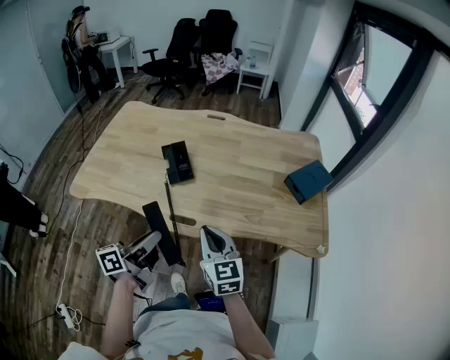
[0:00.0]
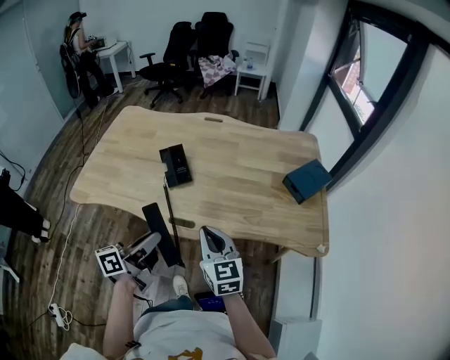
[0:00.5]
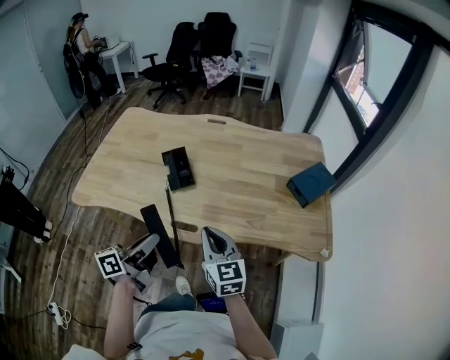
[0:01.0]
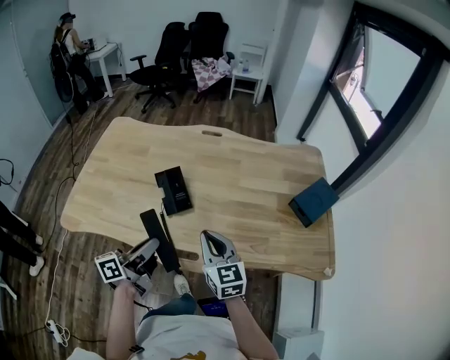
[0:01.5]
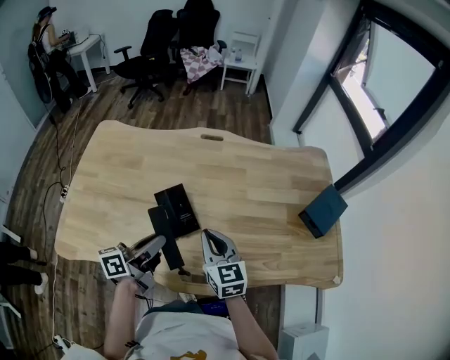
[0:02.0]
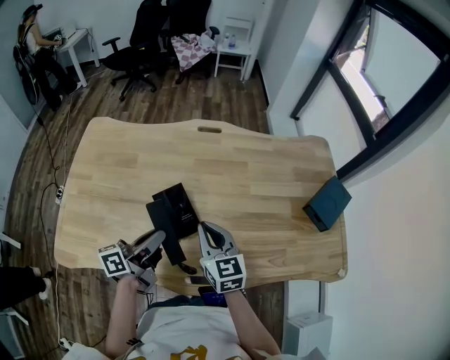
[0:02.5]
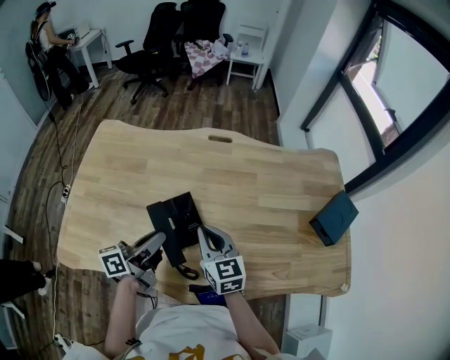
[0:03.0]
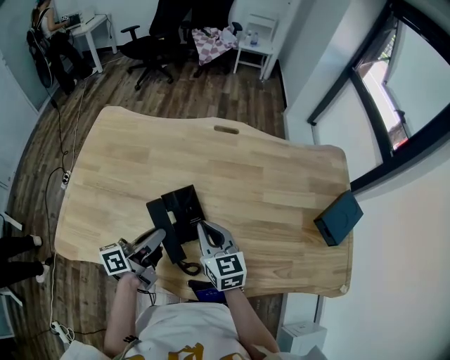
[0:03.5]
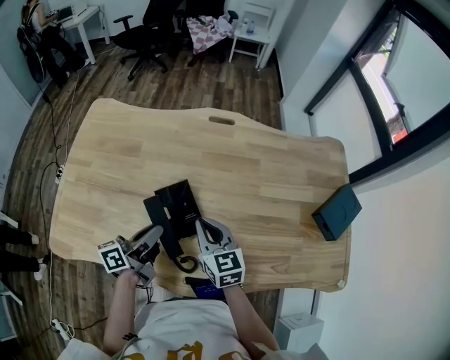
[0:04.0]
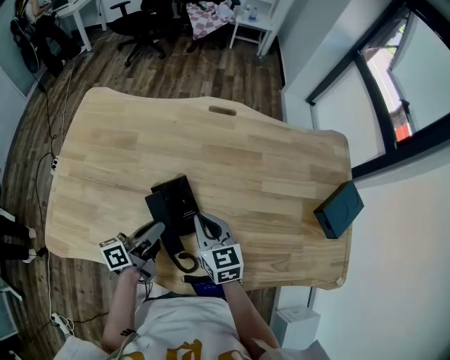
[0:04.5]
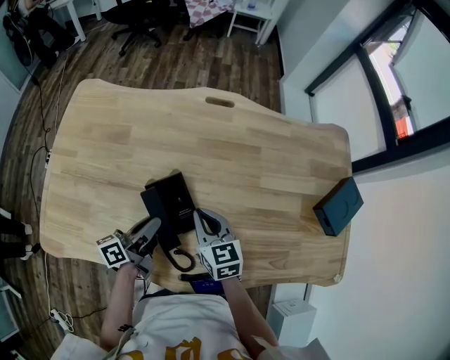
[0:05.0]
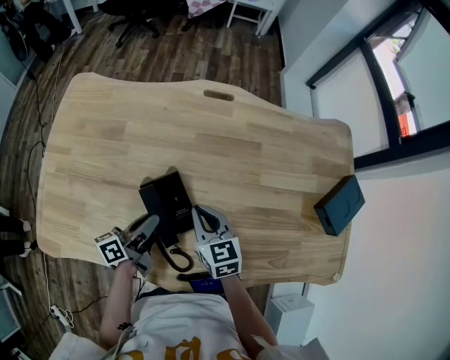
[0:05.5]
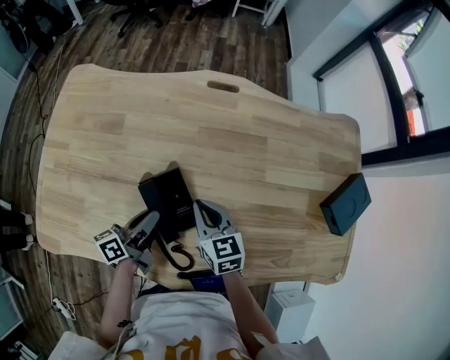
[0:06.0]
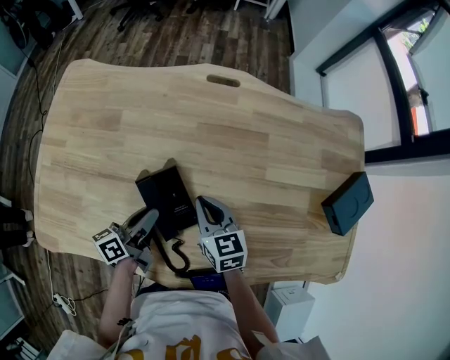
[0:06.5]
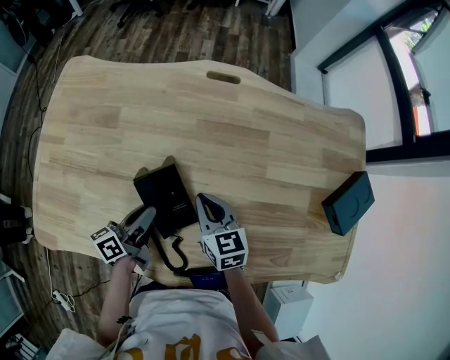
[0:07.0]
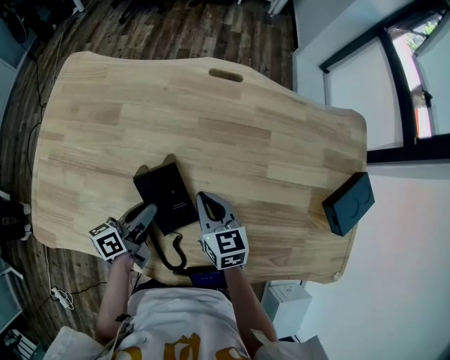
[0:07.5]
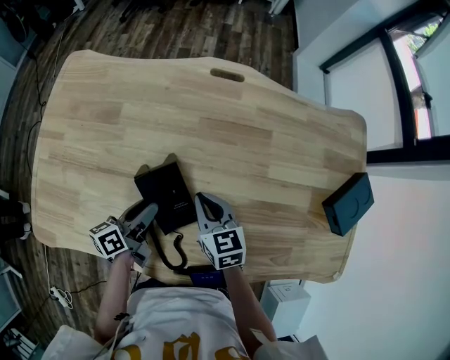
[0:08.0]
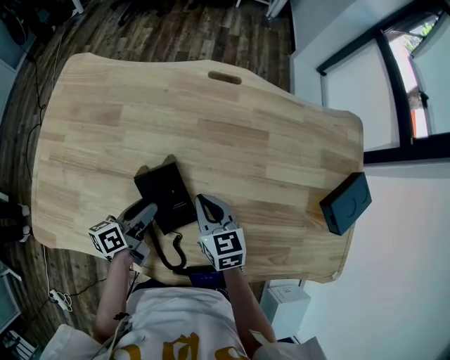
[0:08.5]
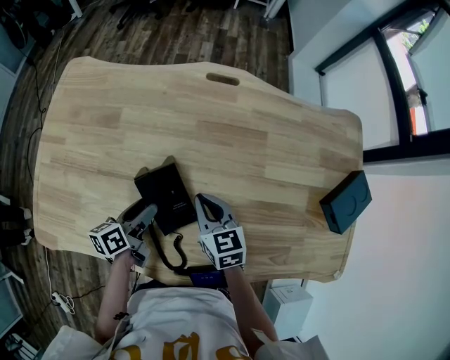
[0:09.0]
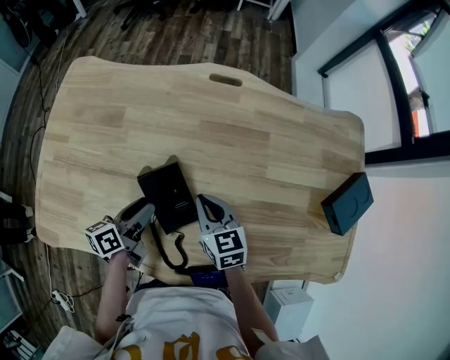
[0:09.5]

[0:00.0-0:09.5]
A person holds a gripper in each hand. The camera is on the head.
0:00.0 to 0:02.0: The right gripper is displaced forward and to the left by roughly 25 cm. Meanwhile the left gripper moves forward, roughly 25 cm.
0:02.0 to 0:04.0: The left gripper goes approximately 10 cm downward and forward; the right gripper moves forward, downward and to the left, about 10 cm.
0:04.0 to 0:05.5: Both grippers travel together downward, about 5 cm.
0:05.5 to 0:07.5: The grippers make only small movements.
0:07.5 to 0:09.5: The left gripper opens.

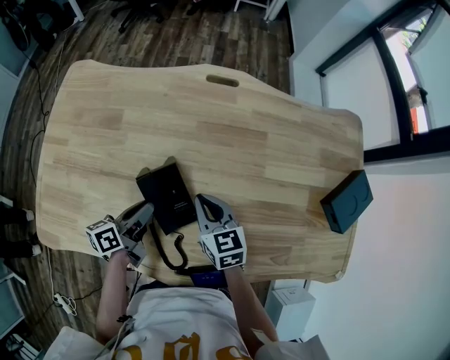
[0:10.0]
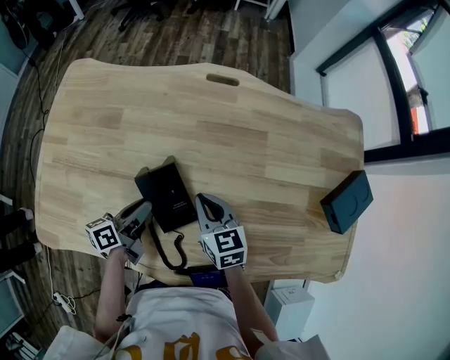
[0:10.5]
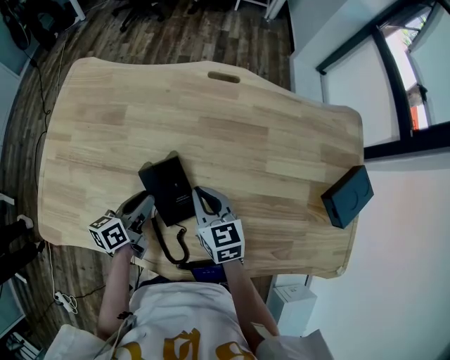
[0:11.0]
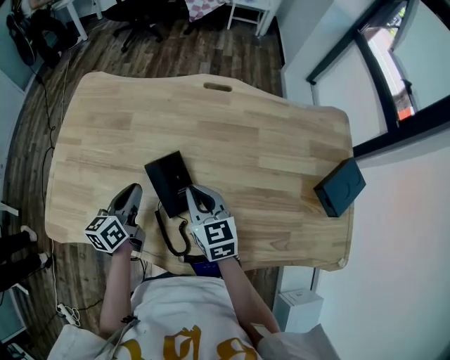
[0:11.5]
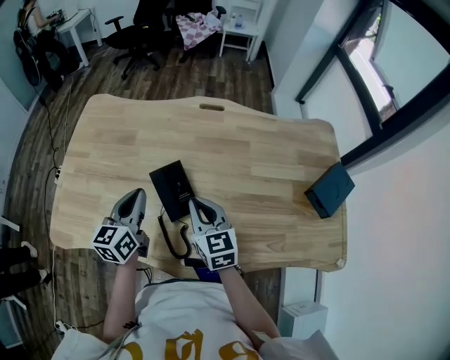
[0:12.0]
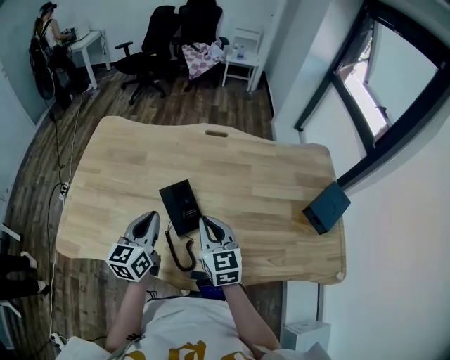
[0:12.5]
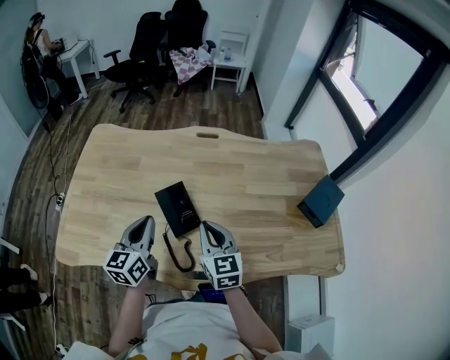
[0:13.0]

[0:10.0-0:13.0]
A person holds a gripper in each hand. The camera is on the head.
0:10.0 to 0:11.5: Both grippers move upward, about 5 cm. The left gripper changes its angle by about 30 degrees.
0:11.5 to 0:13.0: The right gripper moves backward and upward, roughly 10 cm. Meanwhile the left gripper goes approximately 15 cm upward and backward, and changes its angle by some 20 degrees.

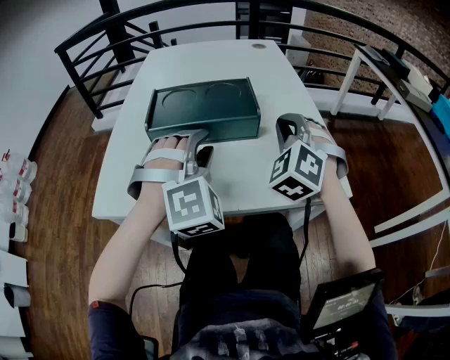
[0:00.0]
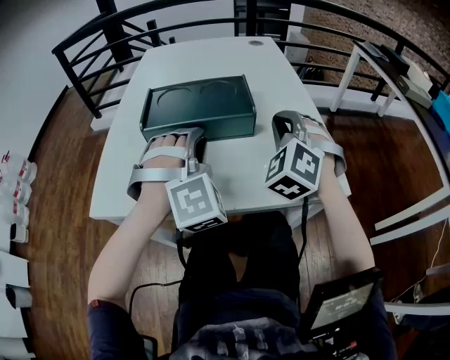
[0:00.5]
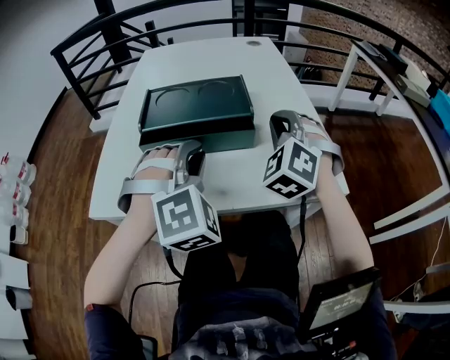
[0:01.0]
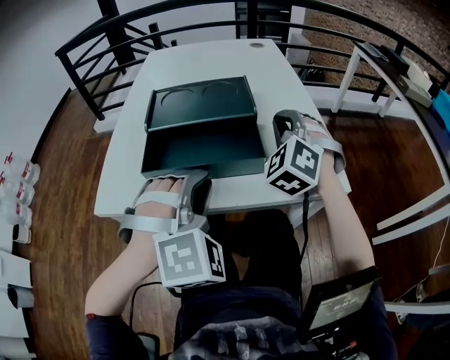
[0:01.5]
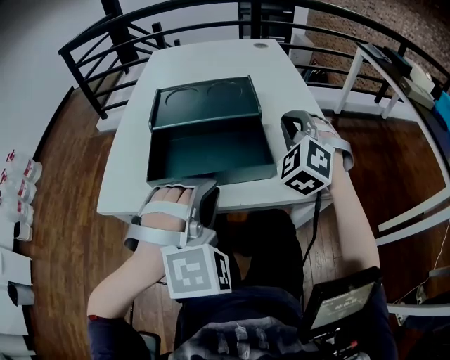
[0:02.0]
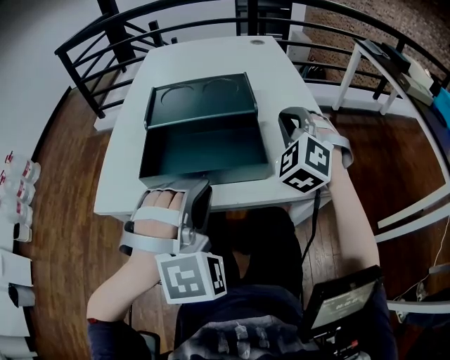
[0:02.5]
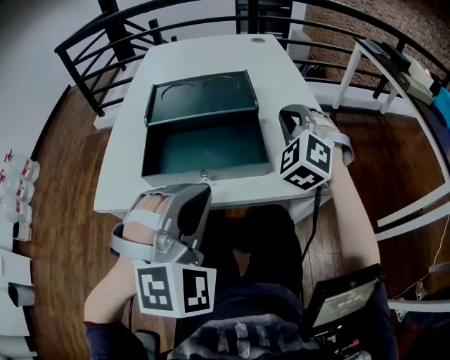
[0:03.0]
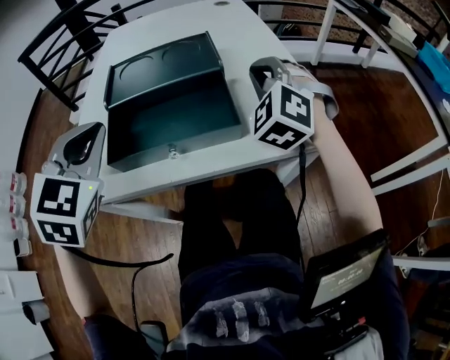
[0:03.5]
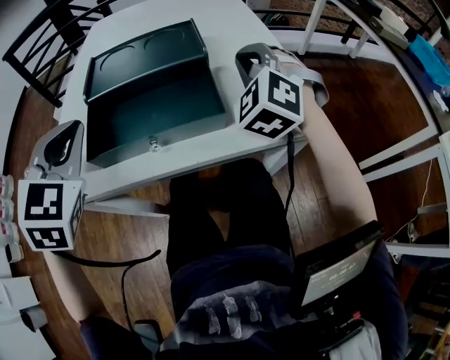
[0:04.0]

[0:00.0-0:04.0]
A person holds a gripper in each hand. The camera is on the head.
0:00.0 to 0:02.0: The left gripper shifts some 10 cm backward.
0:02.0 to 0:04.0: The left gripper travels to the left and forward by about 15 cm, and swivels about 40 degrees.

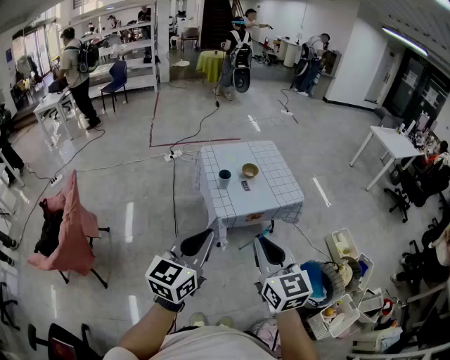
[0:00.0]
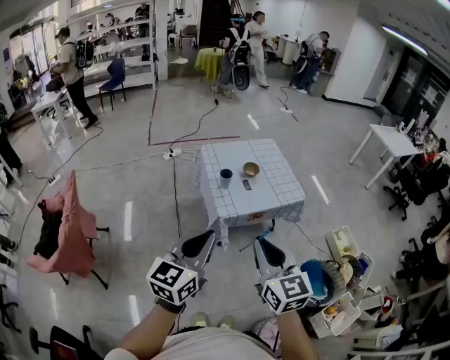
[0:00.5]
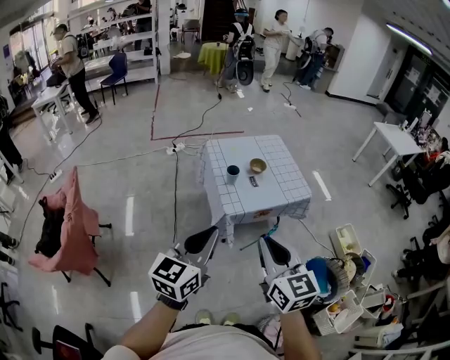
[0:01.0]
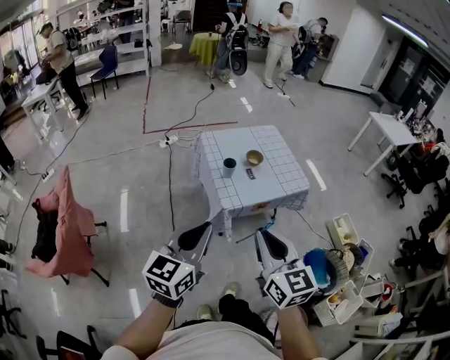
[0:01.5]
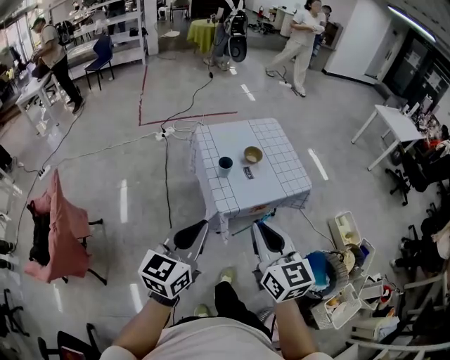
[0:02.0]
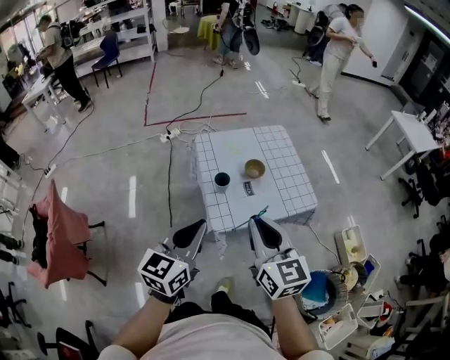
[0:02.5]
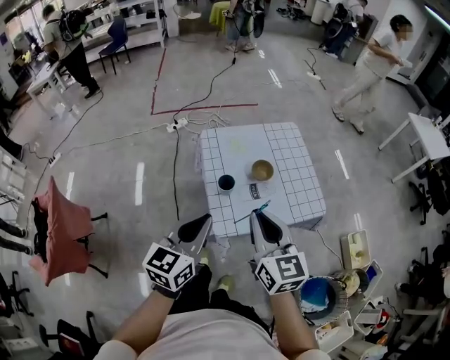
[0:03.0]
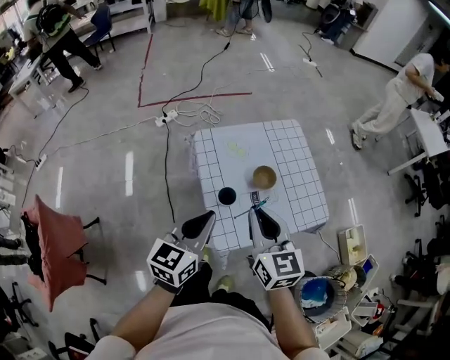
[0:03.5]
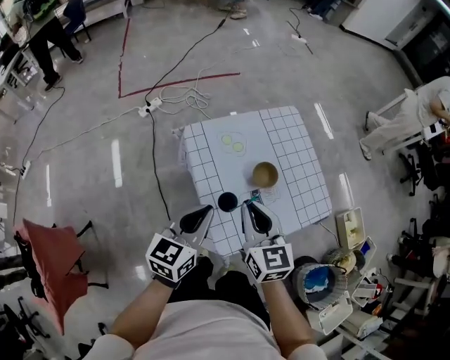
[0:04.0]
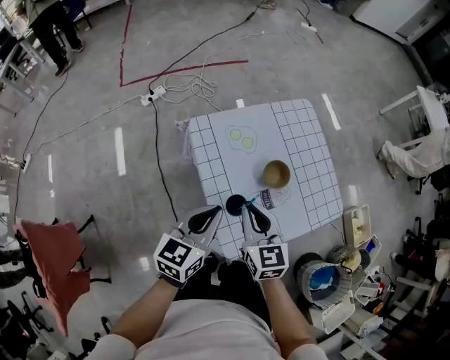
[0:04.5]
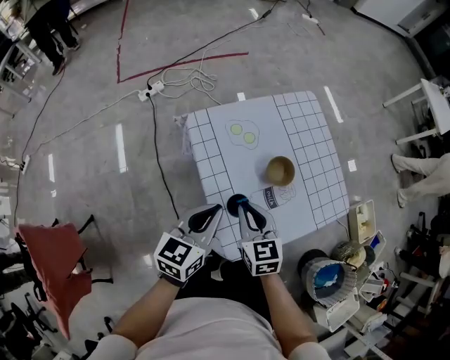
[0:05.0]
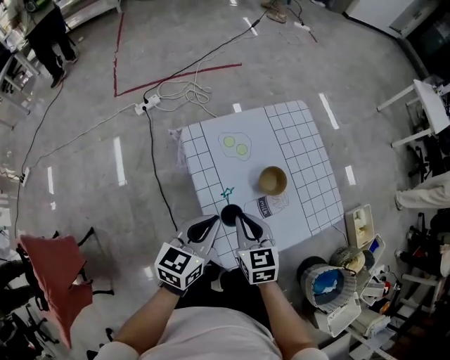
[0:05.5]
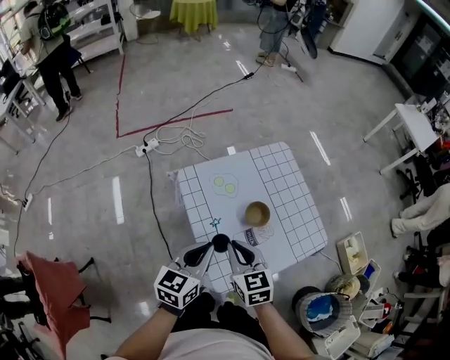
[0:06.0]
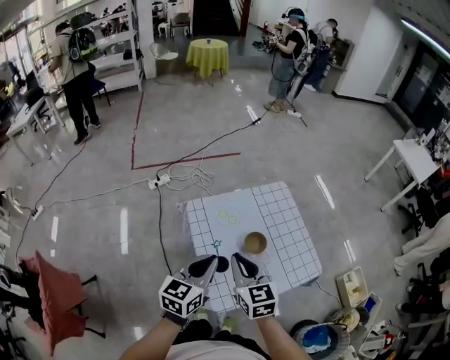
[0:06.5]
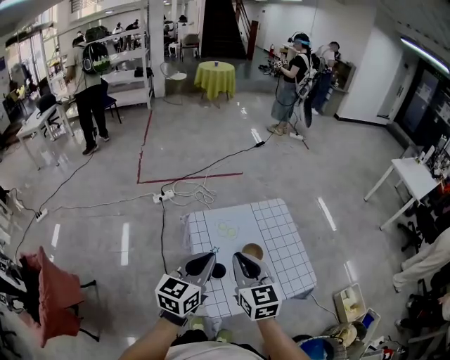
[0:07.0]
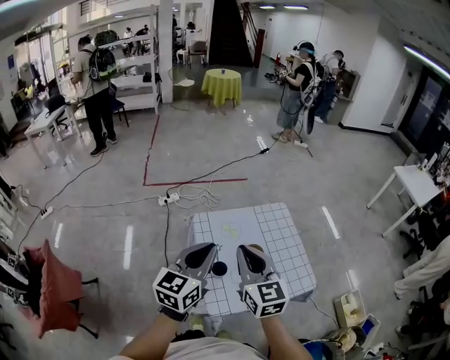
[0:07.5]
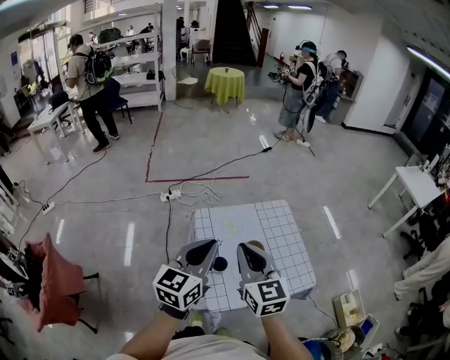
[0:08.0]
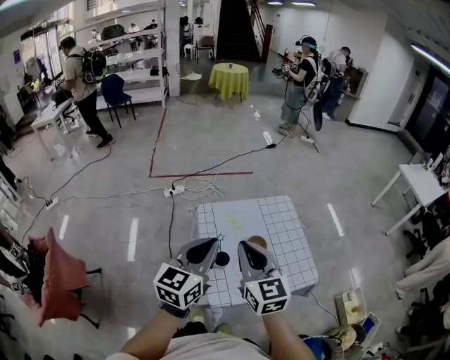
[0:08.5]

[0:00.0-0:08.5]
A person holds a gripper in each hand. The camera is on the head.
0:00.0 to 0:02.0: The left gripper heads forward, downward and to the left, covering roughly 15 cm. Meanwhile the right gripper shifts roughly 15 cm forward.
0:02.0 to 0:04.0: Both grippers are carried forward, approximately 40 cm.
0:04.0 to 0:06.5: The left gripper heads upward, covering about 5 cm. Meanwhile the right gripper travels downward and back again, approximately 15 cm each way.
0:06.5 to 0:08.5: The two grippers go about 15 cm upward and backward.

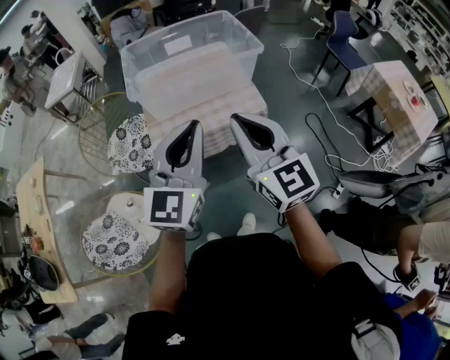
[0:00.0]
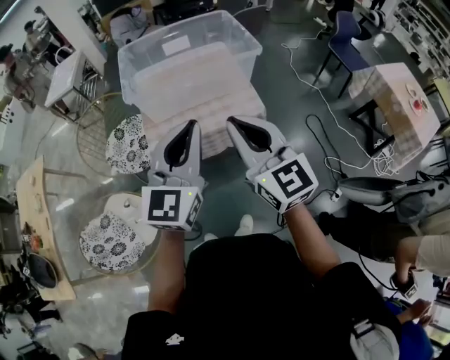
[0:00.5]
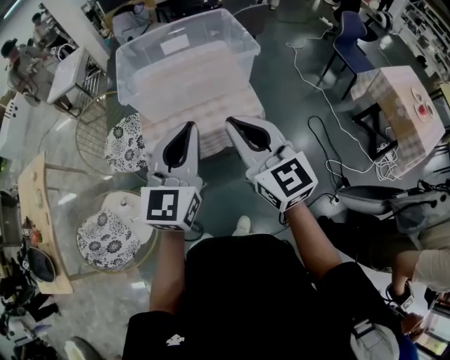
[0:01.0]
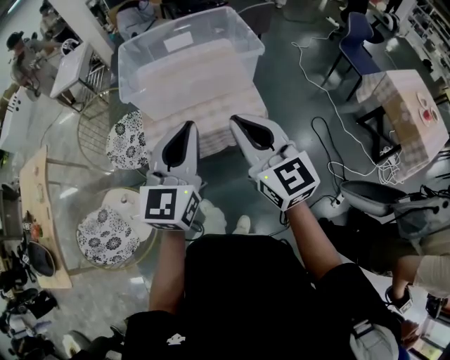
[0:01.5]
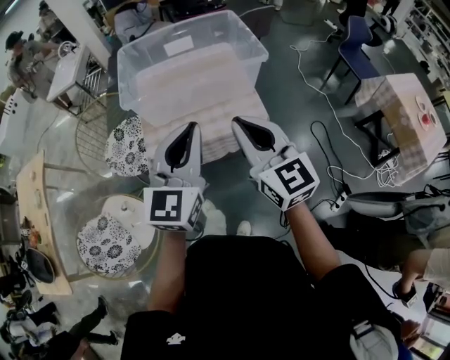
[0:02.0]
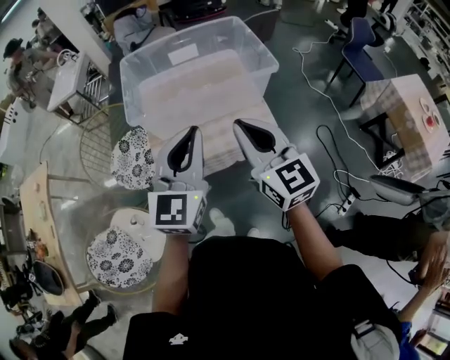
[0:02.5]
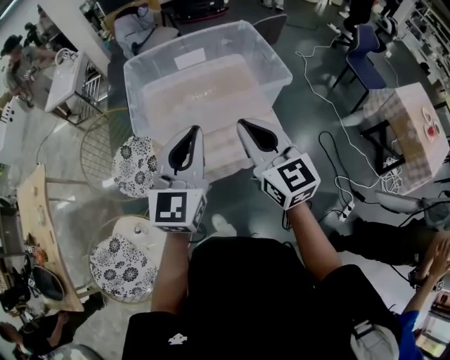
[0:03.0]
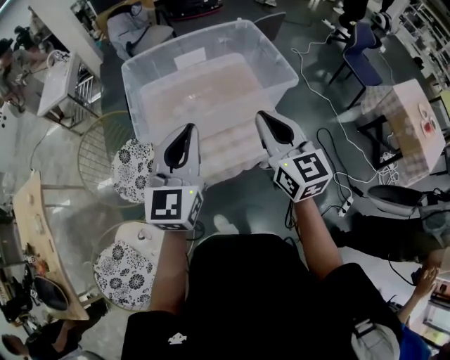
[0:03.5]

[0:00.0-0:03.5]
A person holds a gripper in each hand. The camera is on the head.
0:00.0 to 0:02.0: The left gripper is displaced forward by about 10 cm. The right gripper goes roughly 10 cm forward and to the right.
0:02.0 to 0:03.5: The left gripper is displaced forward and to the left by some 20 cm, while the right gripper heads forward, covering approximately 15 cm.
